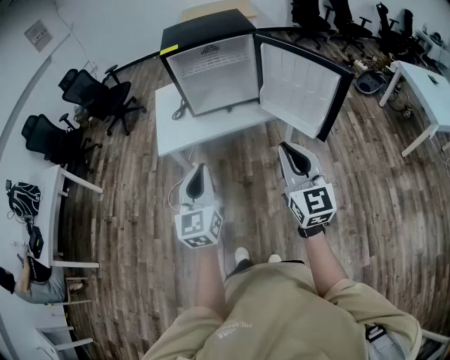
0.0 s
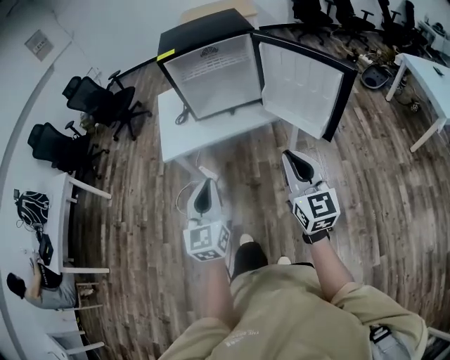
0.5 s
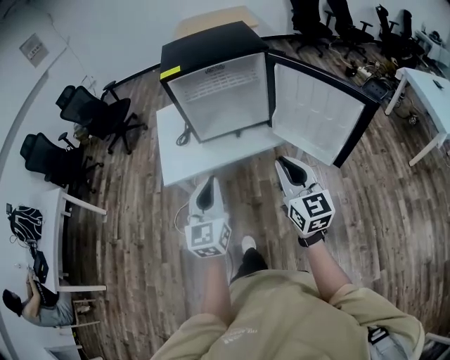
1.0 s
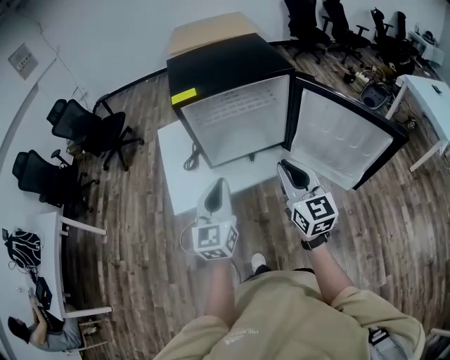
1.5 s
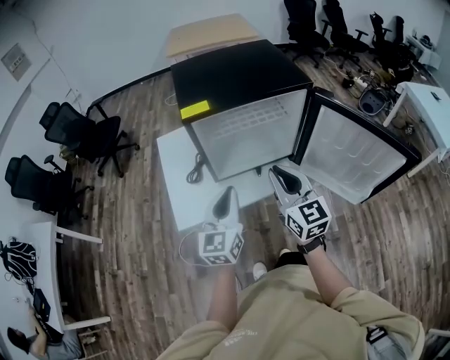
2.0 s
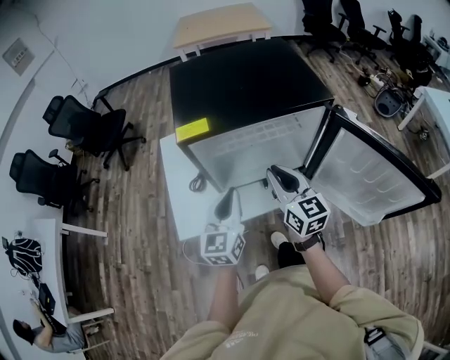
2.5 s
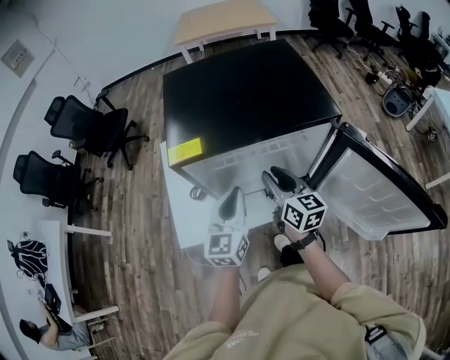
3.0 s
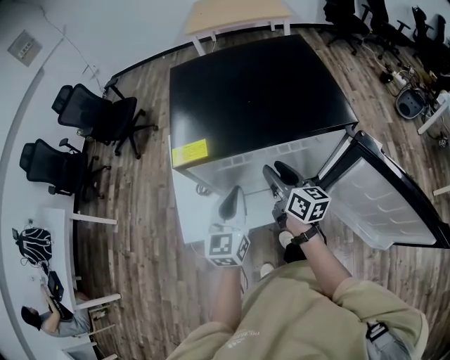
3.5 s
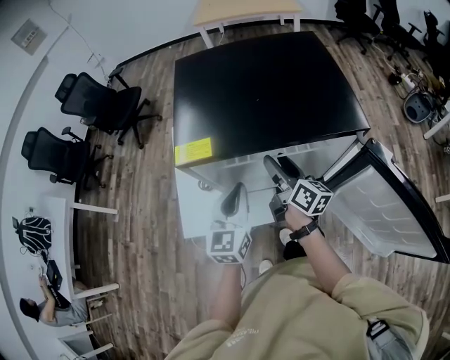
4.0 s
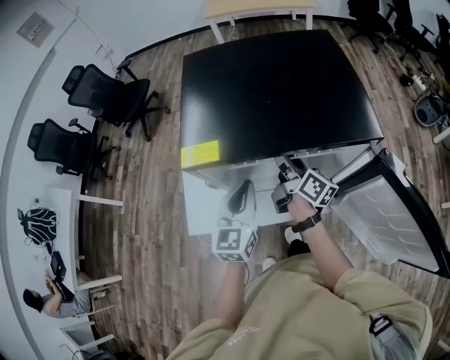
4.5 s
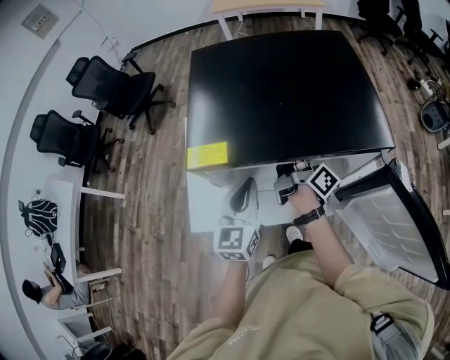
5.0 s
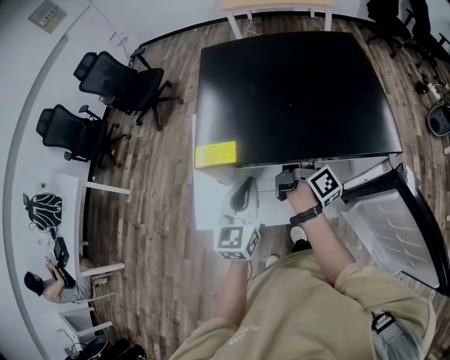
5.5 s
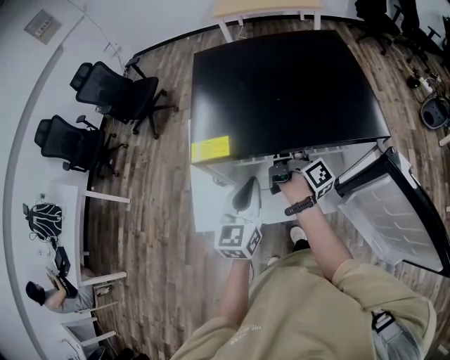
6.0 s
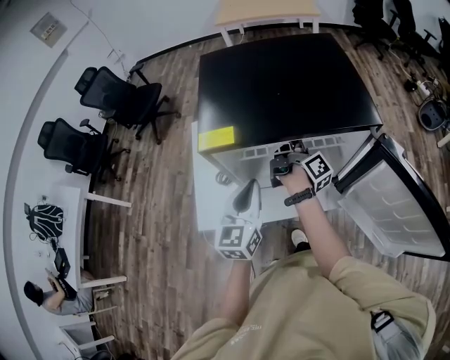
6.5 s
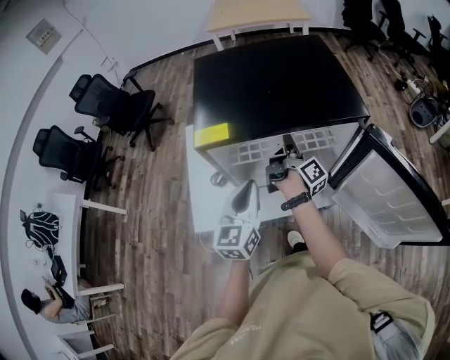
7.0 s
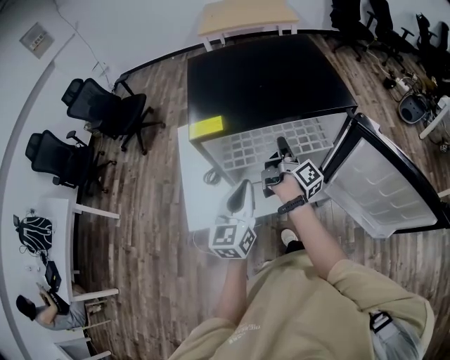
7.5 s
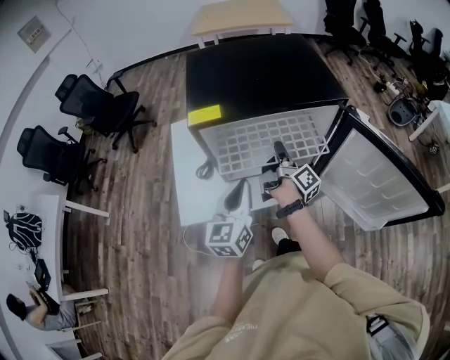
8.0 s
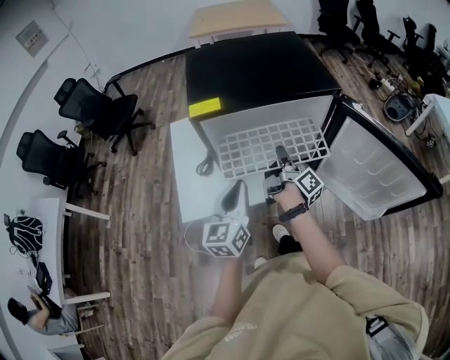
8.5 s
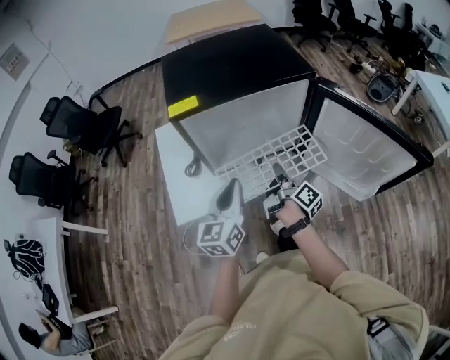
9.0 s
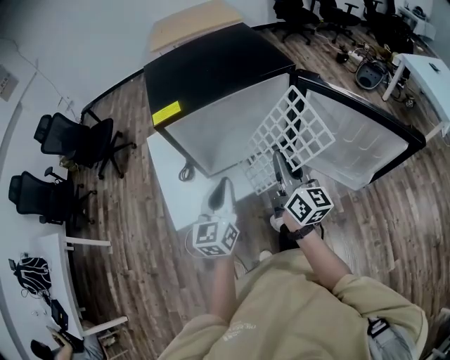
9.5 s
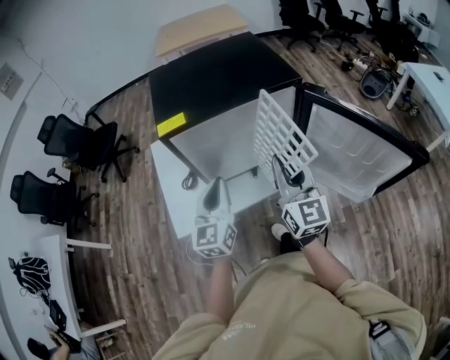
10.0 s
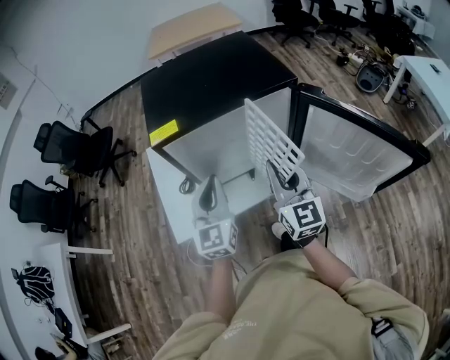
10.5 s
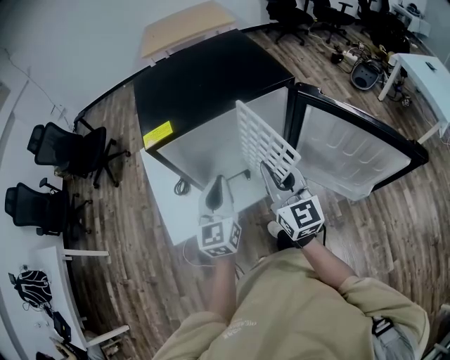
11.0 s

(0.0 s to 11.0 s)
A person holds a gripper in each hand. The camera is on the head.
0.0 s - 2.0 s: The right gripper moves forward and to the left, about 40 cm; the left gripper travels forward by approximately 35 cm.
2.0 s - 3.5 s: The right gripper moves forward and downward, some 25 cm, changes its angle by approximately 40 degrees, and opens. The left gripper heads forward, covering roughly 15 cm.
3.5 s - 5.5 s: The left gripper ends up some 5 cm from where it was, while the right gripper travels forward by about 10 cm, swivels about 40 degrees, and closes up.
5.5 s - 7.5 s: Both grippers travel together backward, about 10 cm.
7.5 s - 9.0 s: The left gripper travels backward by roughly 10 cm. The right gripper shifts about 15 cm backward.
9.0 s - 11.0 s: The left gripper travels forward by approximately 5 cm, while the right gripper is displaced upward by roughly 15 cm, and twists approximately 80 degrees counterclockwise, seen from behind.

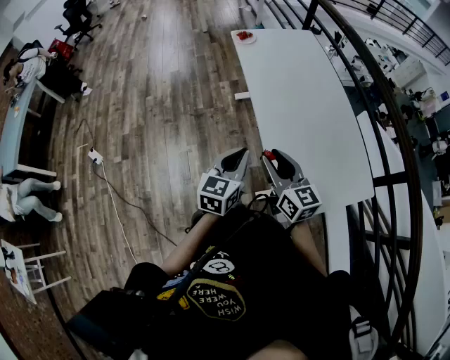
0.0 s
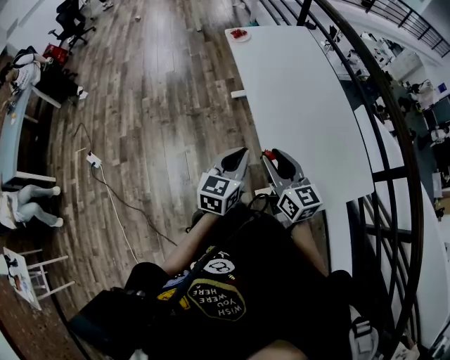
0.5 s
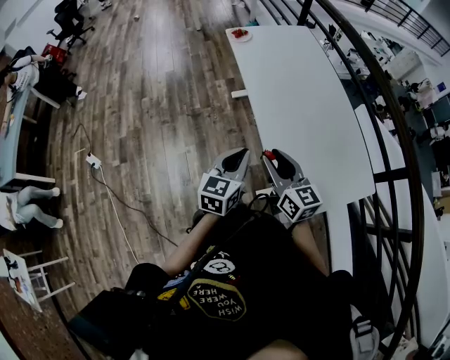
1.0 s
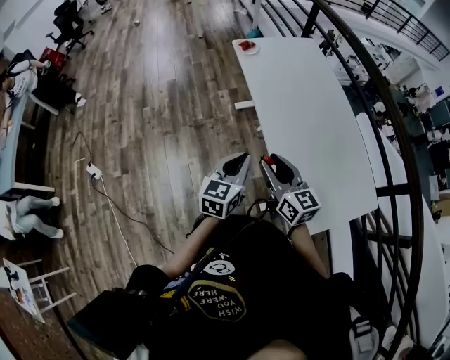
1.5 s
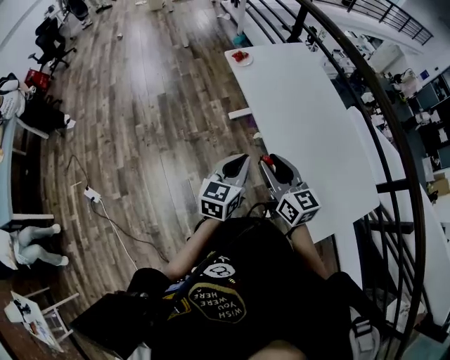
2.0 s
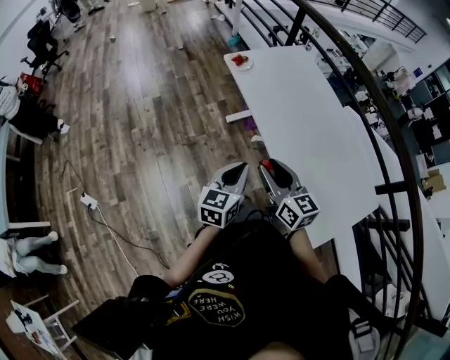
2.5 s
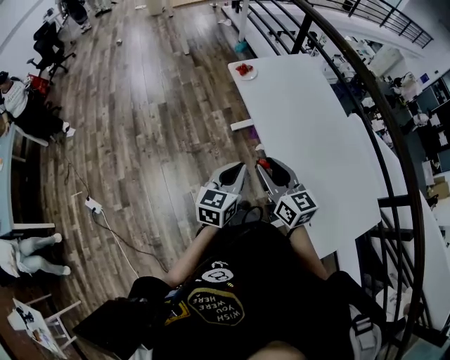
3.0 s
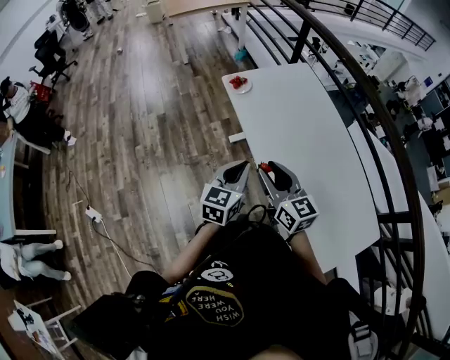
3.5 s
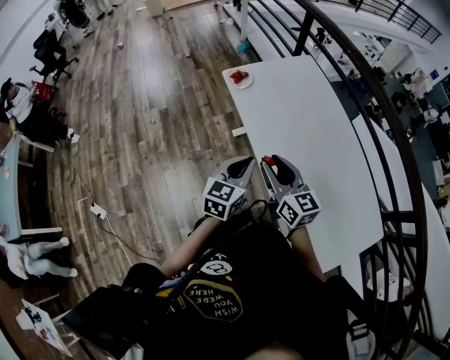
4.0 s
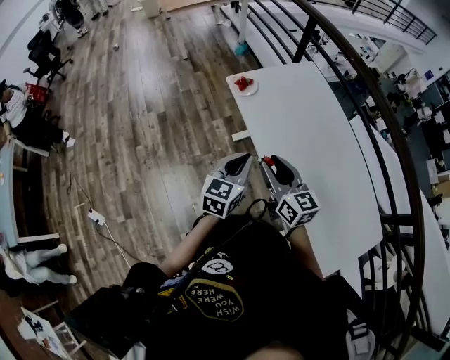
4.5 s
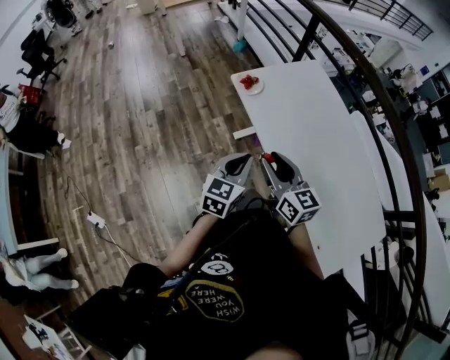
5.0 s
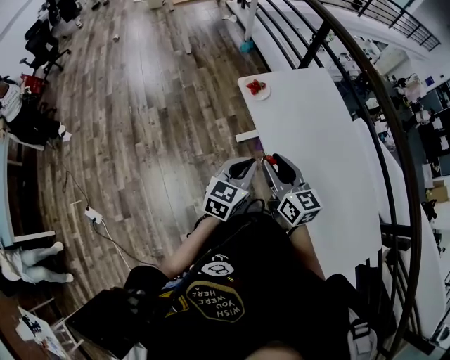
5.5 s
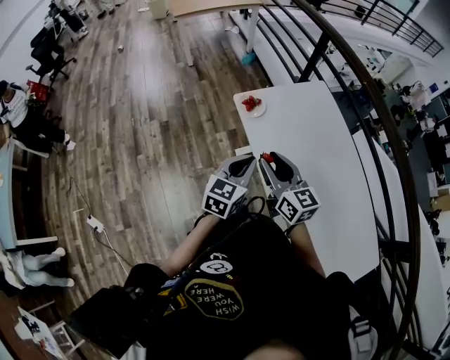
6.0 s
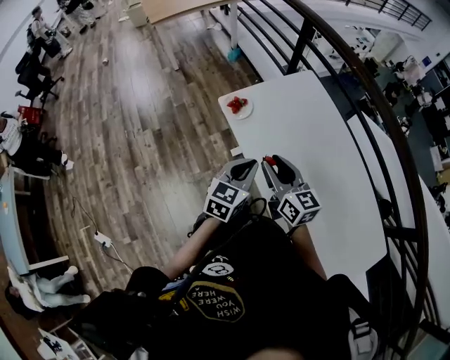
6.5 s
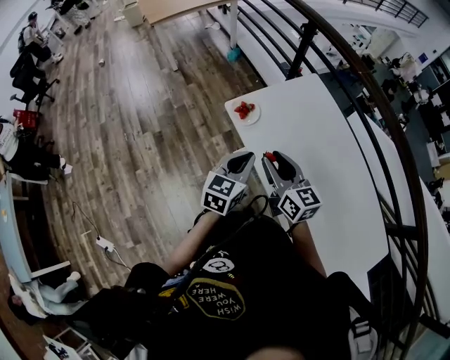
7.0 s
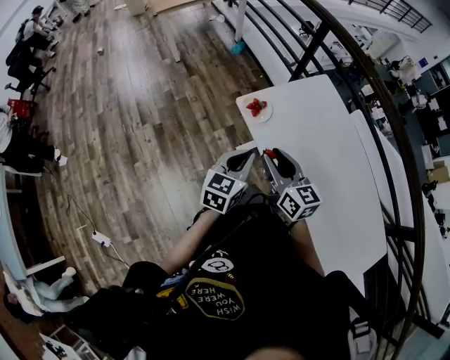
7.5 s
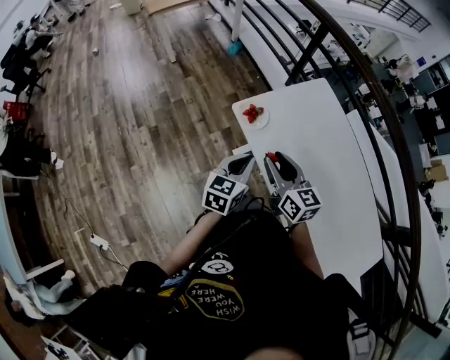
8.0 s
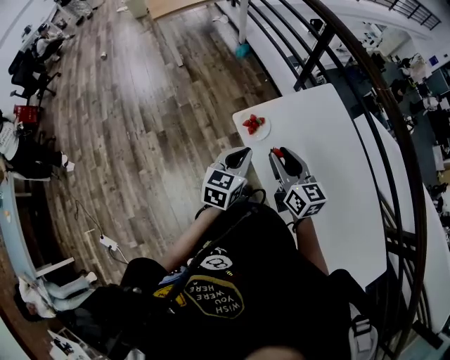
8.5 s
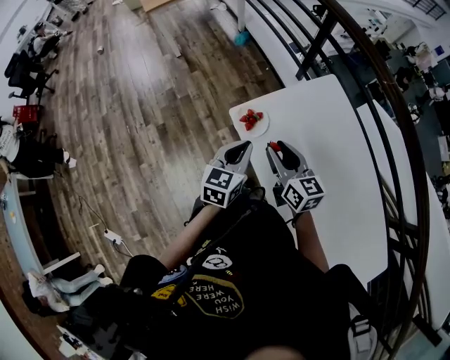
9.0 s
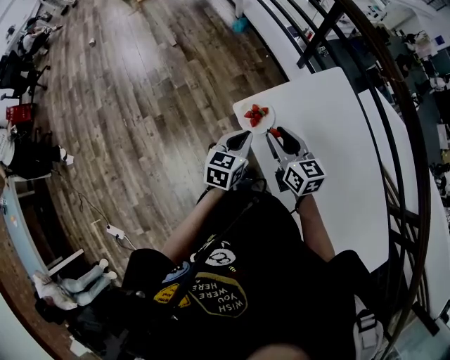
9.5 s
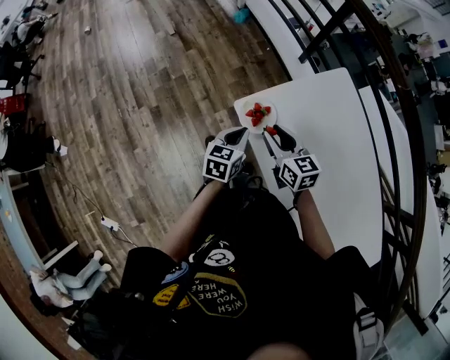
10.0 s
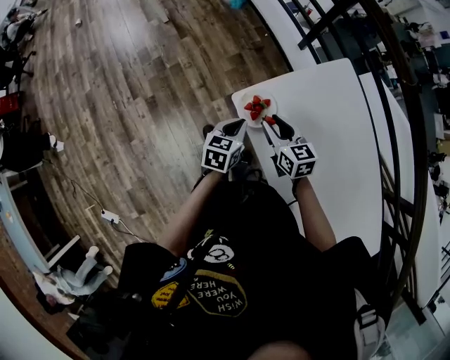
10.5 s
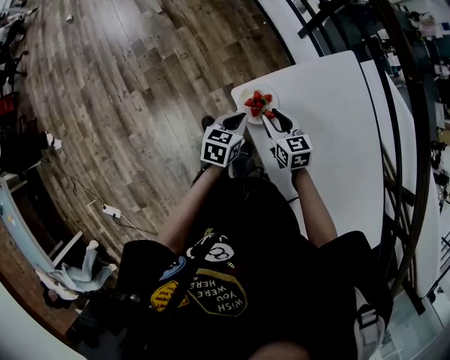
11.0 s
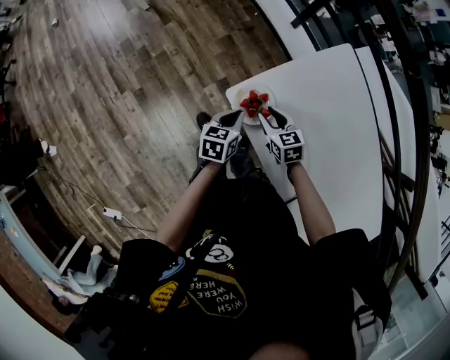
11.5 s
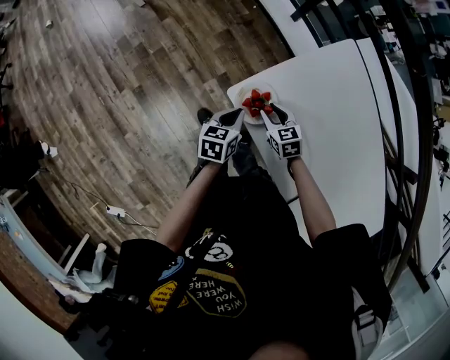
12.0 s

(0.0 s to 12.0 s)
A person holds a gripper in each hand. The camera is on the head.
0.0 s - 2.0 s: The two grippers go approximately 20 cm forward and to the left.
2.0 s - 4.0 s: The grippers both shift forward by some 20 cm.
4.0 s - 6.0 s: Both grippers move forward and to the left, about 20 cm.
6.0 s - 8.0 s: The left gripper goes roughly 15 cm forward and to the left. The right gripper travels forward by about 10 cm.
8.0 s - 10.0 s: The two grippers go approximately 20 cm forward and downward.
10.0 s - 12.0 s: The left gripper is displaced downward and forward by roughly 10 cm, while the right gripper is displaced downward by approximately 20 cm, and changes its angle by roughly 20 degrees.

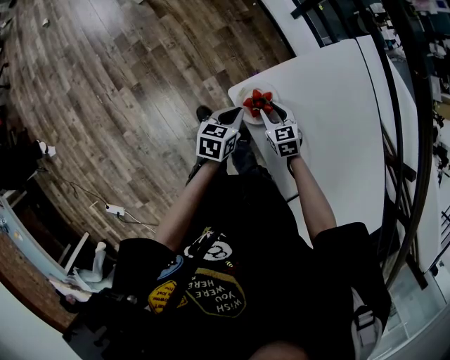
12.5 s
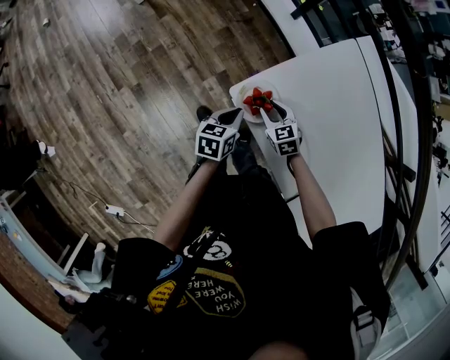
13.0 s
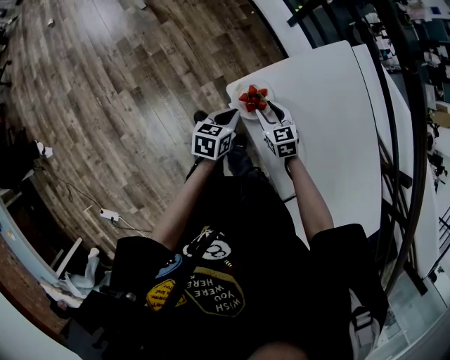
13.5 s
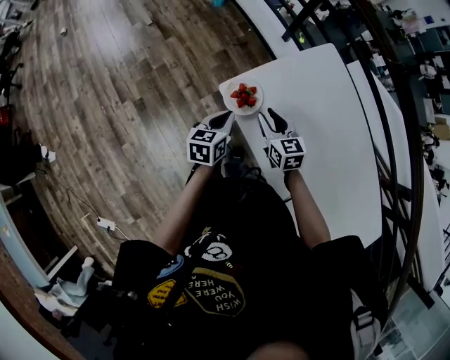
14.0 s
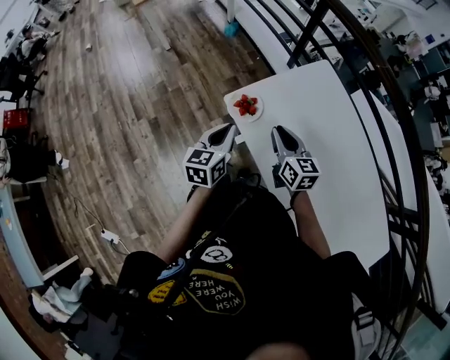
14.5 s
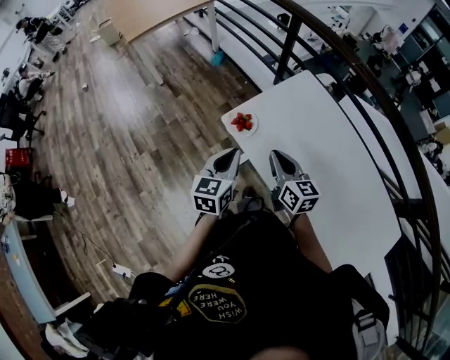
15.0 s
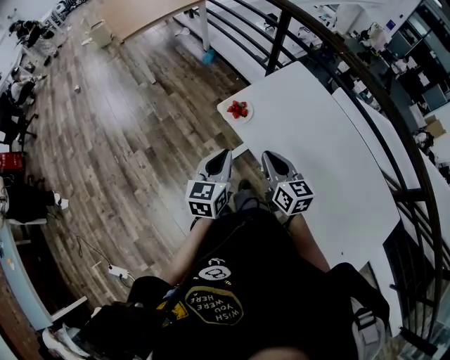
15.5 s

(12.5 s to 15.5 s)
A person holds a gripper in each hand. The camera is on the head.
12.5 s - 14.0 s: The right gripper is displaced upward by about 15 cm, and swivels approximately 20 degrees; the left gripper heads upward and backward, covering about 10 cm.
14.0 s - 15.5 s: Both grippers move backward and upward, roughly 25 cm. The left gripper rotates roughly 20 degrees, while the right gripper closes.

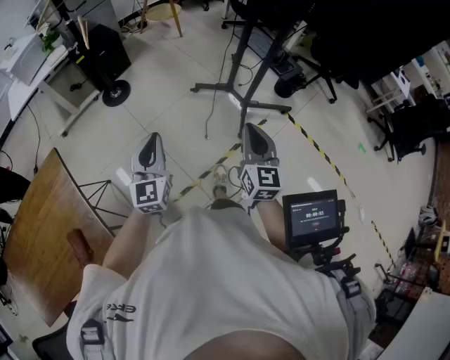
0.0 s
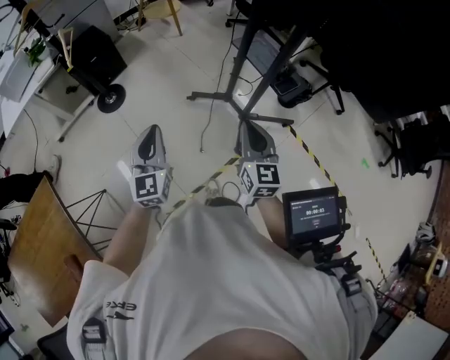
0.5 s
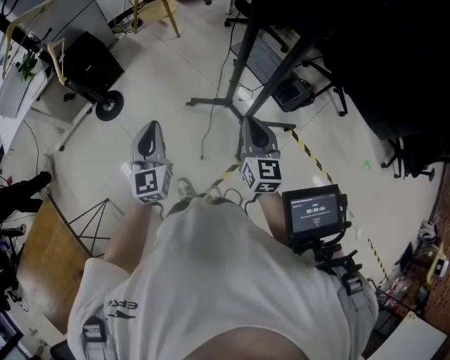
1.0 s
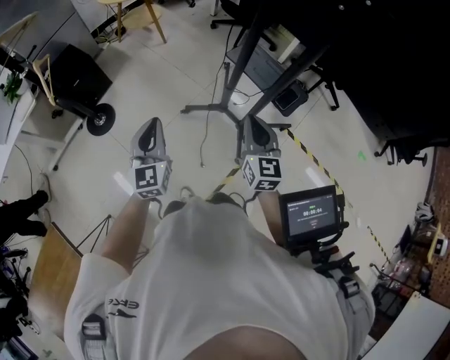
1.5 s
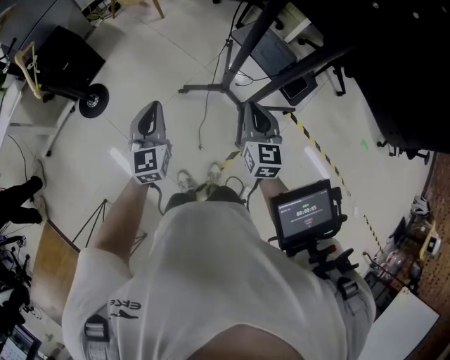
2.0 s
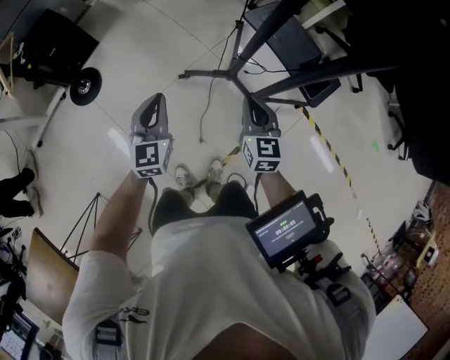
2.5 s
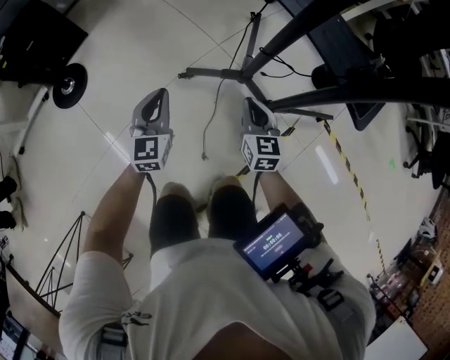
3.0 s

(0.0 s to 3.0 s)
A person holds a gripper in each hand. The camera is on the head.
0.0 s - 1.5 s: The two grippers go some 35 cm forward.
1.5 s - 3.0 s: The grippers both shift downward by about 50 cm.
